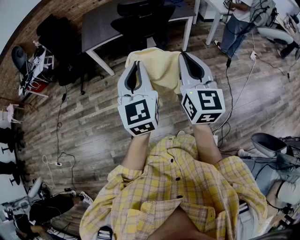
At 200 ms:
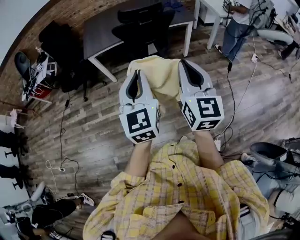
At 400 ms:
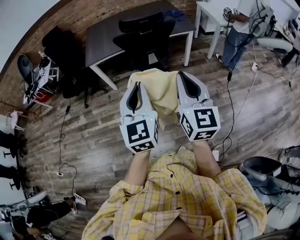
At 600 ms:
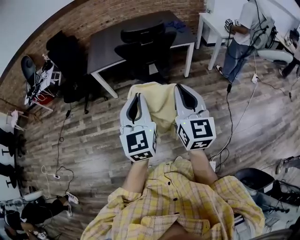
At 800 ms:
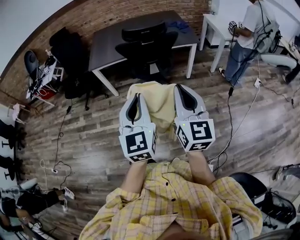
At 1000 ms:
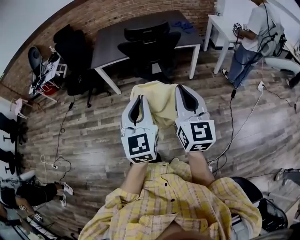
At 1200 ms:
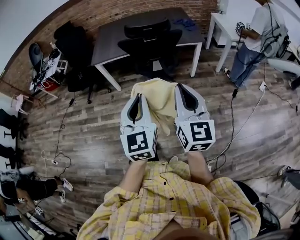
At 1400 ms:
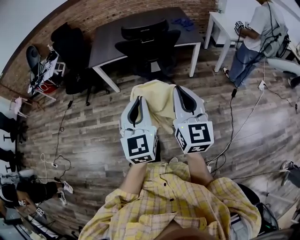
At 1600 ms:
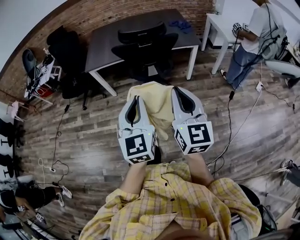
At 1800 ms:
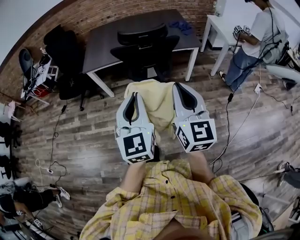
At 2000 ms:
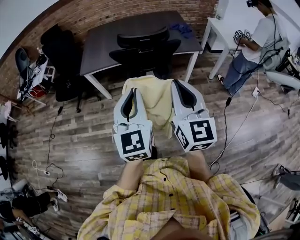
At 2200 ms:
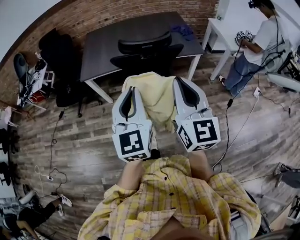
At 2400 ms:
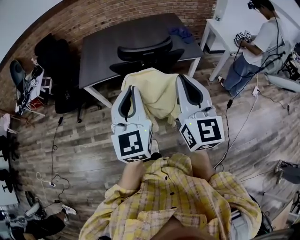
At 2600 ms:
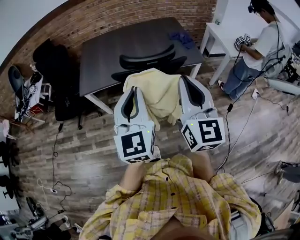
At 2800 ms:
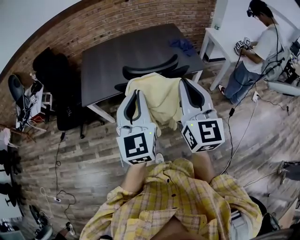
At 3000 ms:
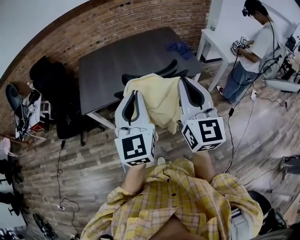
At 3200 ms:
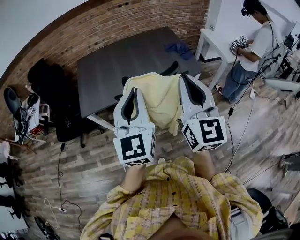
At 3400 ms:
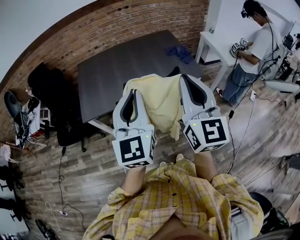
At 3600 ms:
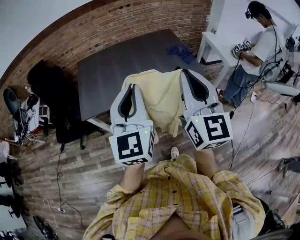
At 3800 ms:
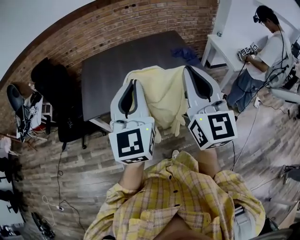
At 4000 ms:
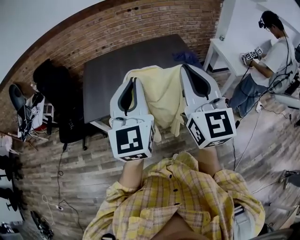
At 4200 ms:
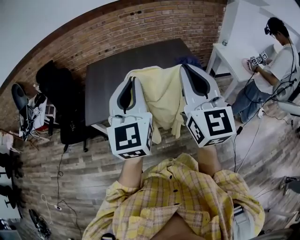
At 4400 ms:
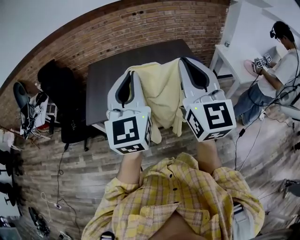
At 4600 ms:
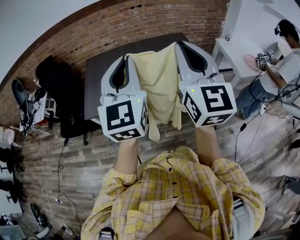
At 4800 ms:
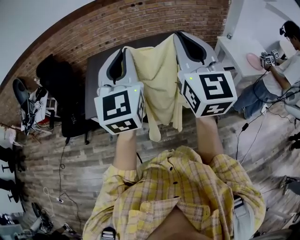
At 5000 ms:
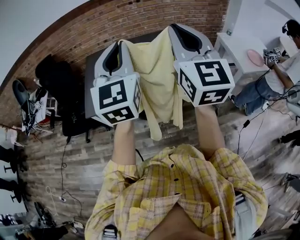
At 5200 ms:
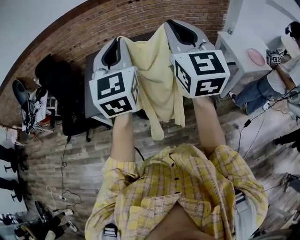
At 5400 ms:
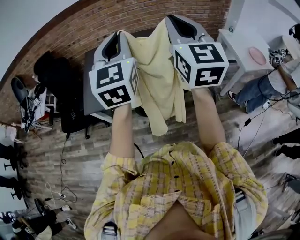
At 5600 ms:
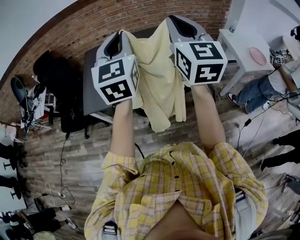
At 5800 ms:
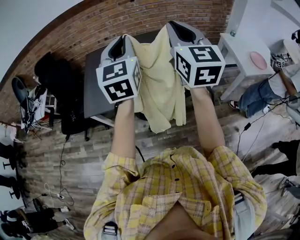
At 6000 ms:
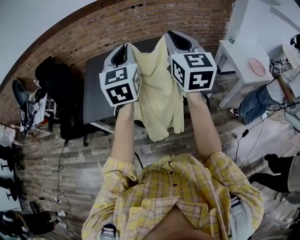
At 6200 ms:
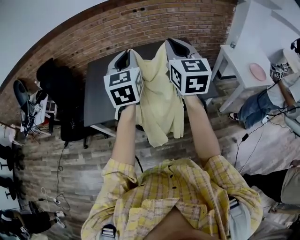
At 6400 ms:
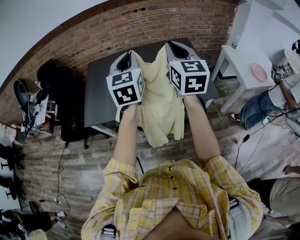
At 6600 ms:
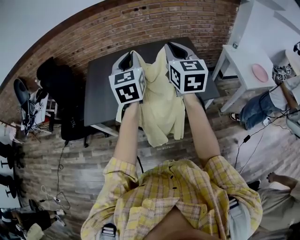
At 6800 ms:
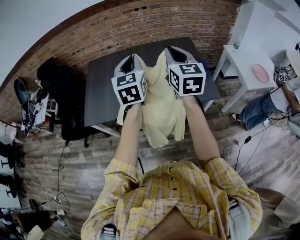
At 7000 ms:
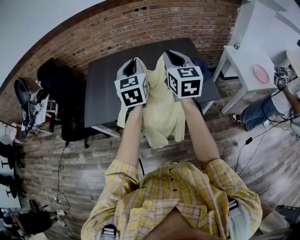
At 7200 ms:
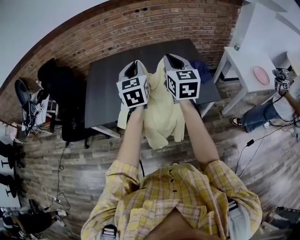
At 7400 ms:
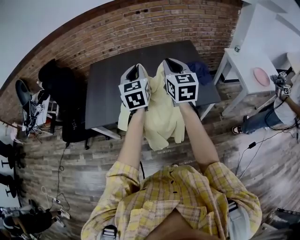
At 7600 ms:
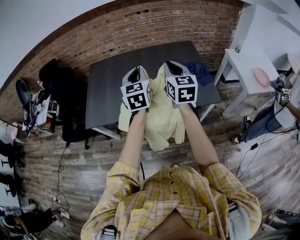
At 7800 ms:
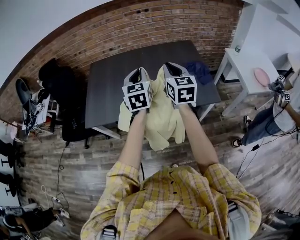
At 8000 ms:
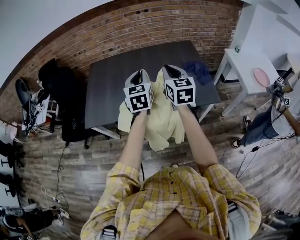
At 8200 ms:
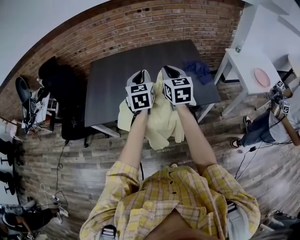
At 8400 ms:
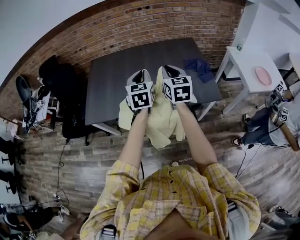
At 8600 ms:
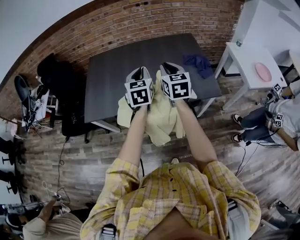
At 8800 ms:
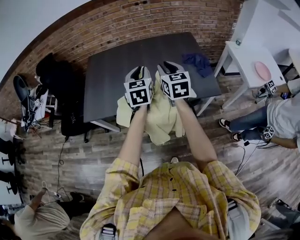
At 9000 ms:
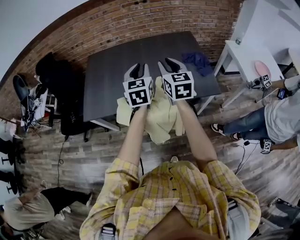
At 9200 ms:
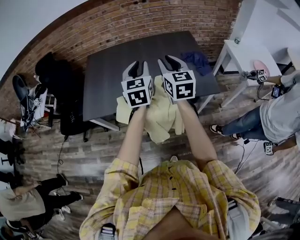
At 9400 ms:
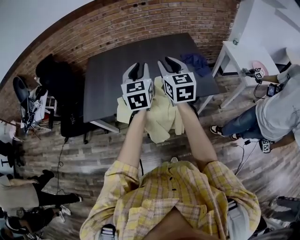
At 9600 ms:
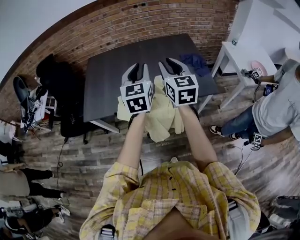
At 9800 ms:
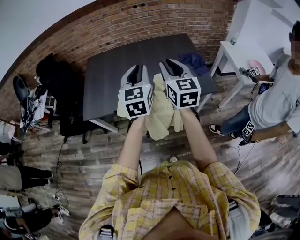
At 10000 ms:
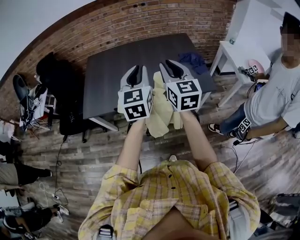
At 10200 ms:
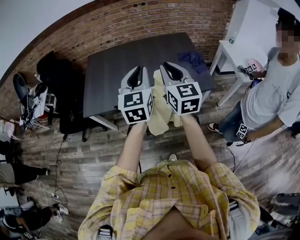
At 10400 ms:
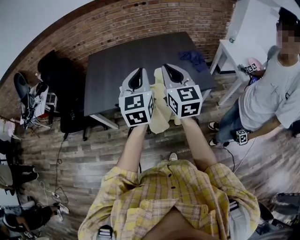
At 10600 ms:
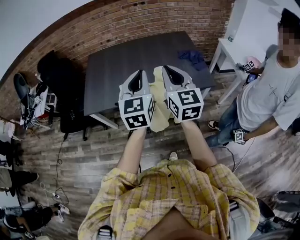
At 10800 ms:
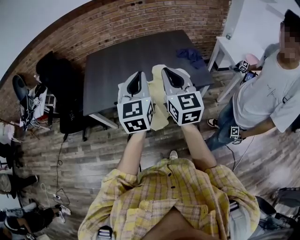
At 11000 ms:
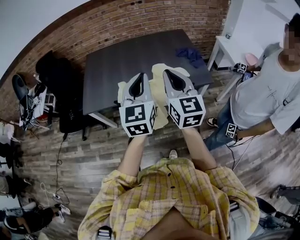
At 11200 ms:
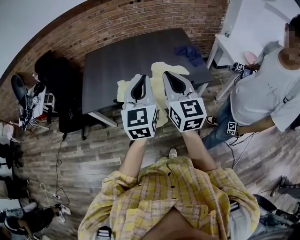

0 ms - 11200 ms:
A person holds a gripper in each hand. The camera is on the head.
0 ms - 1600 ms: The right gripper heads forward and to the right, covering some 10 cm. The left gripper goes approximately 10 cm to the right and forward.
1600 ms - 3200 ms: The grippers both shift forward by approximately 35 cm.
3200 ms - 4800 ms: The grippers both shift forward and upward by approximately 20 cm.
4800 ms - 6400 ms: Both grippers move forward and downward, approximately 20 cm.
6400 ms - 8000 ms: The two grippers go roughly 15 cm downward.
8000 ms - 9600 ms: The grippers both shift backward by roughly 5 cm. The right gripper opens.
9600 ms - 11200 ms: The two grippers go roughly 15 cm backward. The right gripper closes.

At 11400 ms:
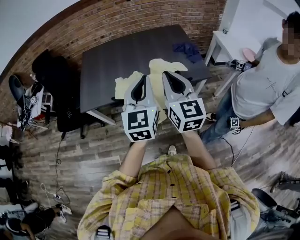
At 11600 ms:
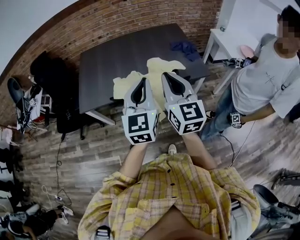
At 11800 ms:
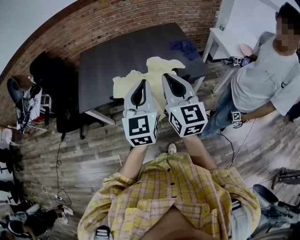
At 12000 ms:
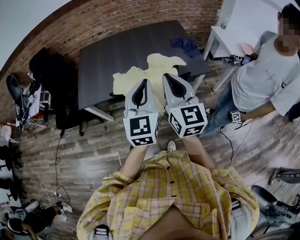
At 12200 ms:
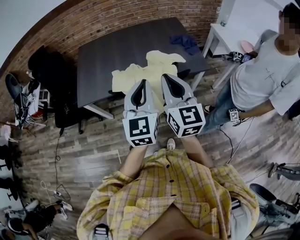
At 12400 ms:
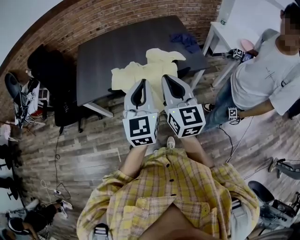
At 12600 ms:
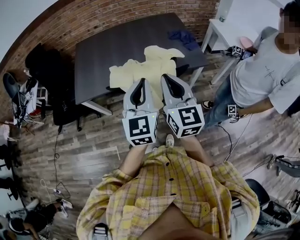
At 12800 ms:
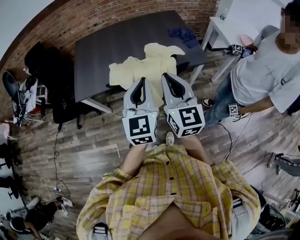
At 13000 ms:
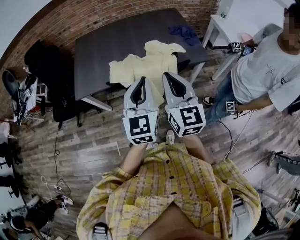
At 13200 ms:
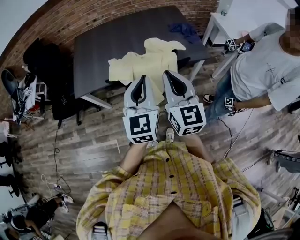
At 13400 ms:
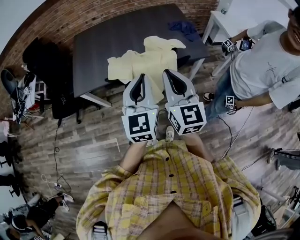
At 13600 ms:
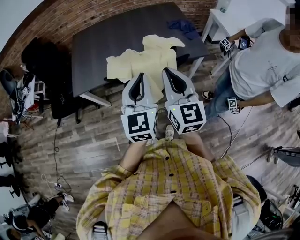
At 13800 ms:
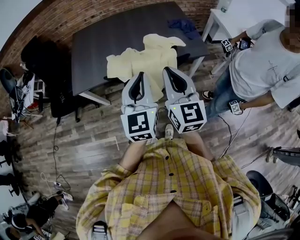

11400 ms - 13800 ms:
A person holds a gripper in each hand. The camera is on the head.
11400 ms - 12600 ms: The left gripper ends up about 5 cm from where it was, while the right gripper changes place by roughly 5 cm.
12600 ms - 13800 ms: The grippers move only a little.

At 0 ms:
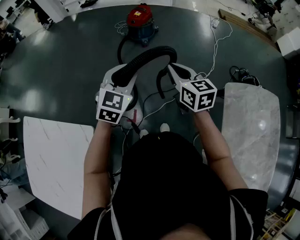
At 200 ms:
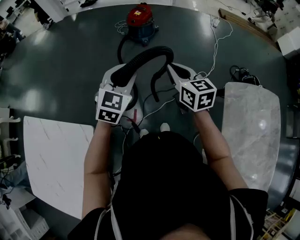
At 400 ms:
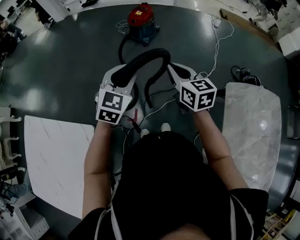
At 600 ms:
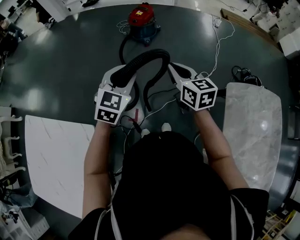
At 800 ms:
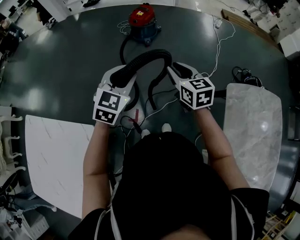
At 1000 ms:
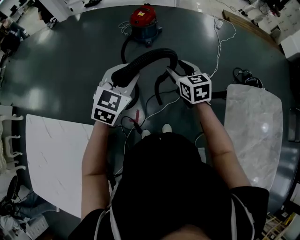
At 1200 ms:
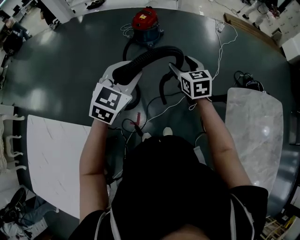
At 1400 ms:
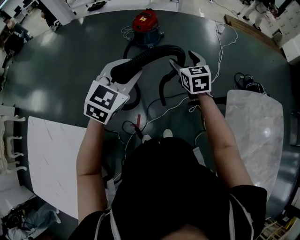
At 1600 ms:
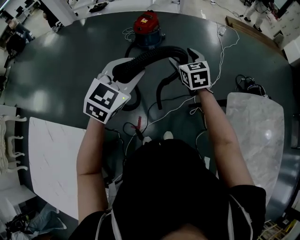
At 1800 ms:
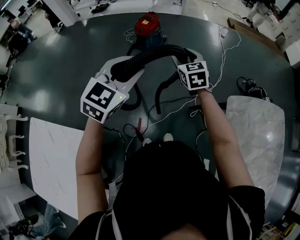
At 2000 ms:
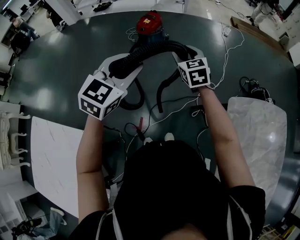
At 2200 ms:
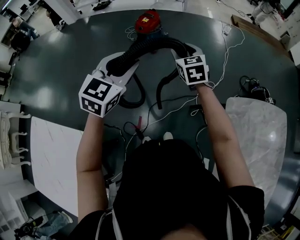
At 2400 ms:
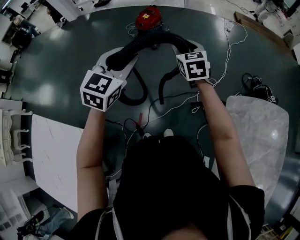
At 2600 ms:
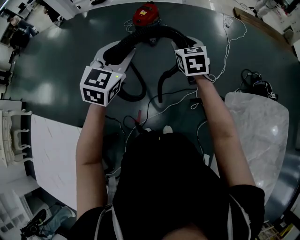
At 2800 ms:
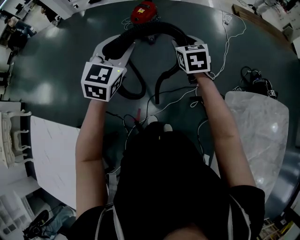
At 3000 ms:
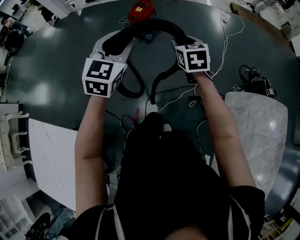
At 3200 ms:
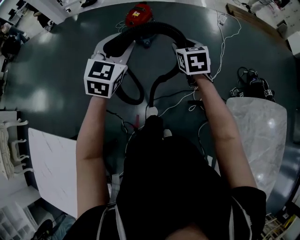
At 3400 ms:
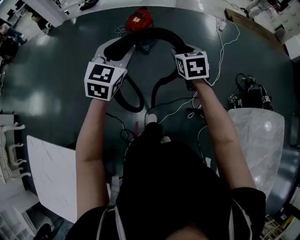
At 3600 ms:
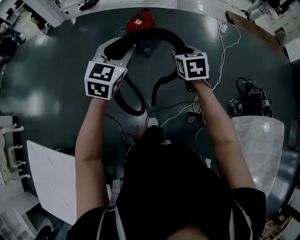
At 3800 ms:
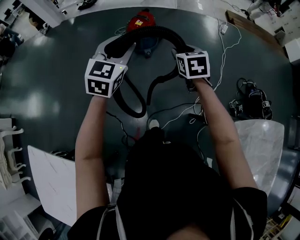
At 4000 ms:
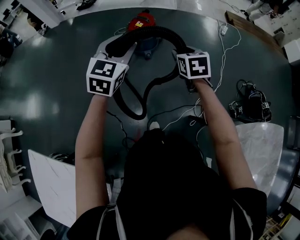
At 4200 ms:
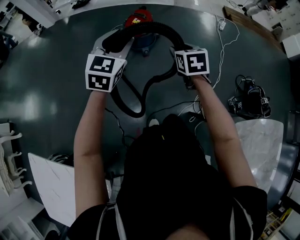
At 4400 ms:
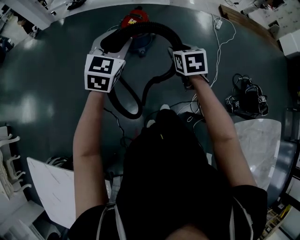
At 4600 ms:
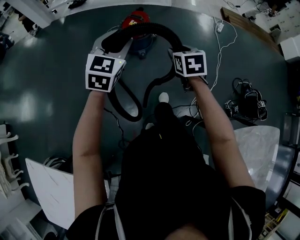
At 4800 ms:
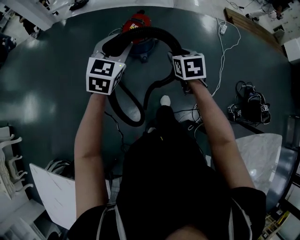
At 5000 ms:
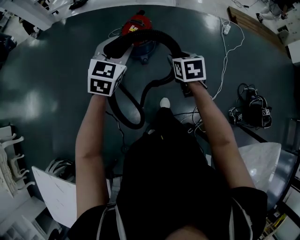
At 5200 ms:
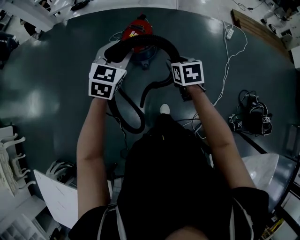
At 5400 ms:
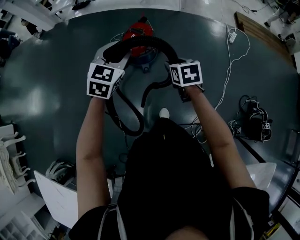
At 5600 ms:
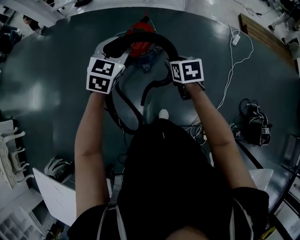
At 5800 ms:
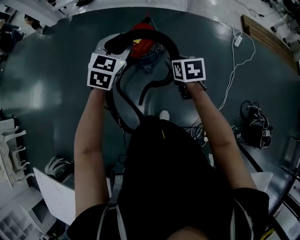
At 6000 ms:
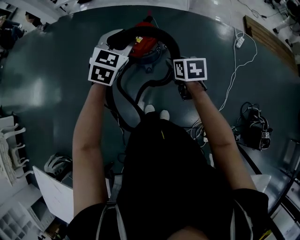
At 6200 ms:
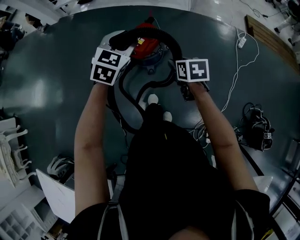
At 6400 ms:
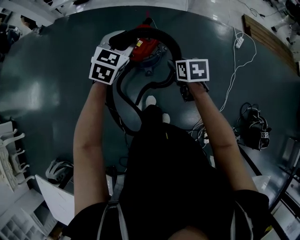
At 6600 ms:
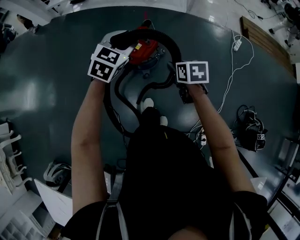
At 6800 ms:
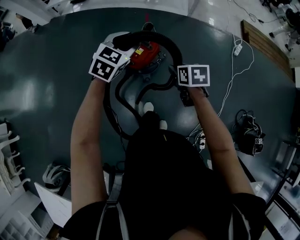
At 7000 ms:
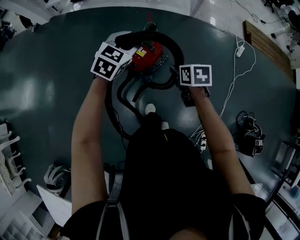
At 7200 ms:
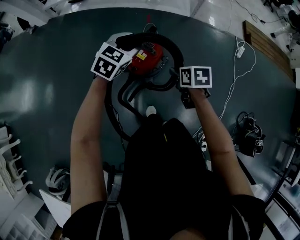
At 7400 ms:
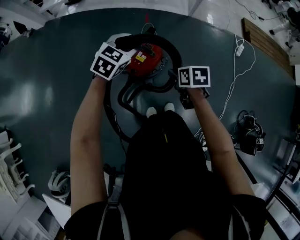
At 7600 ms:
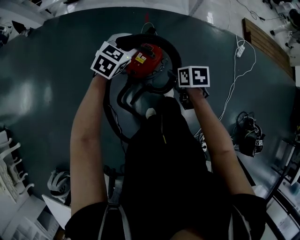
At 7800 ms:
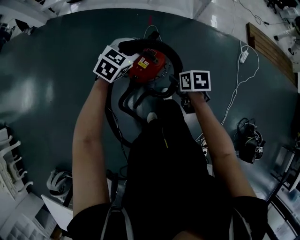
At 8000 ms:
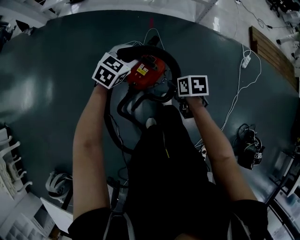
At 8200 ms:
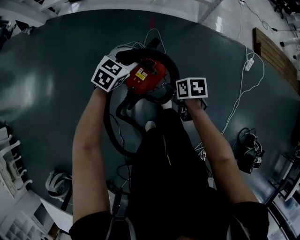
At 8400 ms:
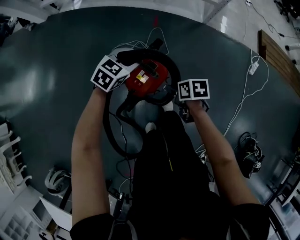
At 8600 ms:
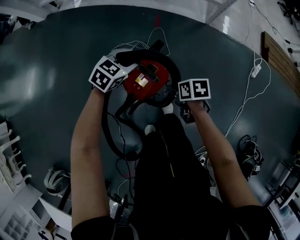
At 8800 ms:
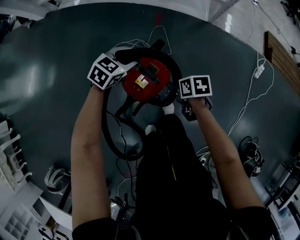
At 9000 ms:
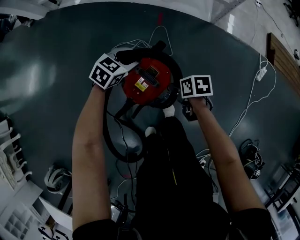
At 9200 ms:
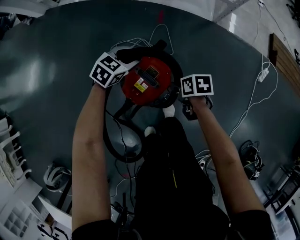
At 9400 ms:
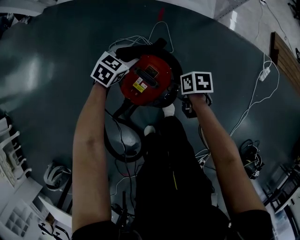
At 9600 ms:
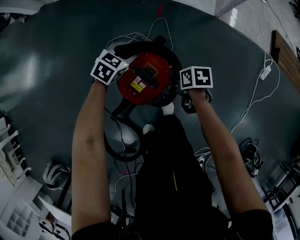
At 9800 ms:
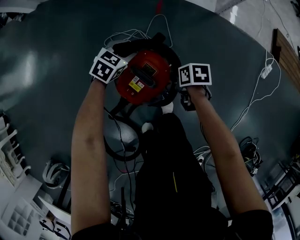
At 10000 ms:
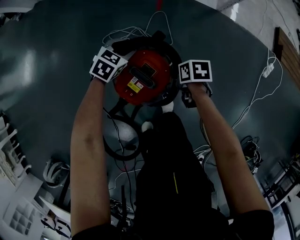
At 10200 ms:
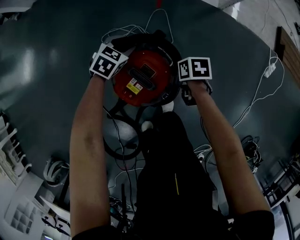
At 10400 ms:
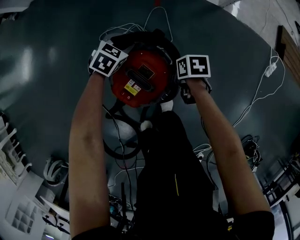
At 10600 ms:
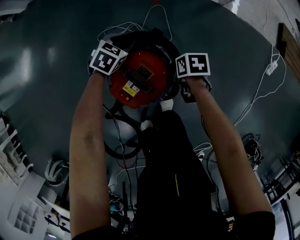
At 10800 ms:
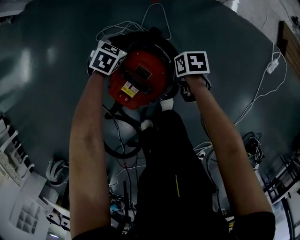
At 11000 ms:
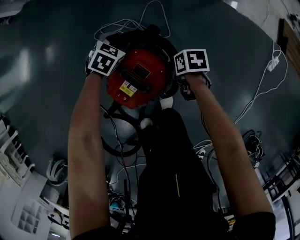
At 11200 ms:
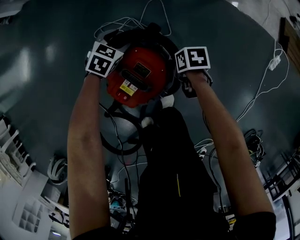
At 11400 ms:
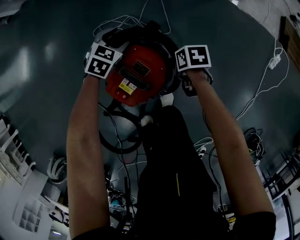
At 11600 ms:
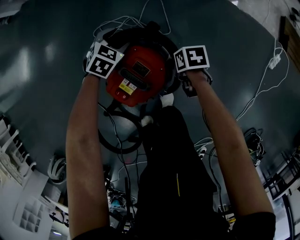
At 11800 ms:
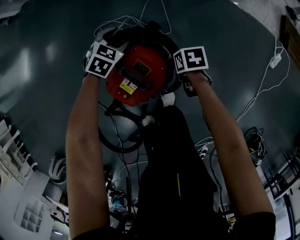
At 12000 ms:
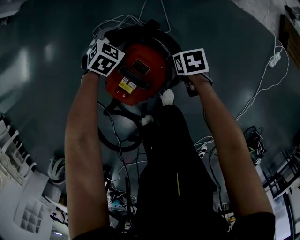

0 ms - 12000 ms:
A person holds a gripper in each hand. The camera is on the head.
0 ms - 1600 ms: The left gripper is displaced upward by about 10 cm. The right gripper heads forward, covering roughly 10 cm, and opens up.
1600 ms - 3000 ms: The right gripper moves forward and to the right, roughly 10 cm, and closes up, while the left gripper shifts approximately 15 cm forward.
3000 ms - 4400 ms: Both grippers move forward and to the left, about 20 cm.
4400 ms - 6000 ms: Both grippers move forward, some 30 cm.
6000 ms - 7600 ms: Both grippers move forward and downward, about 25 cm.
7600 ms - 9000 ms: The two grippers go roughly 25 cm downward and forward.
9000 ms - 10400 ms: Both grippers travel together downward and forward, about 15 cm.
10400 ms - 12000 ms: The grippers stay close to where they were, moving slightly.
